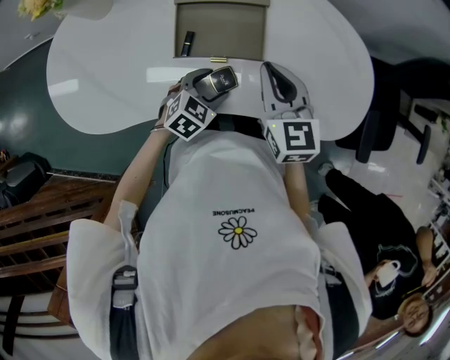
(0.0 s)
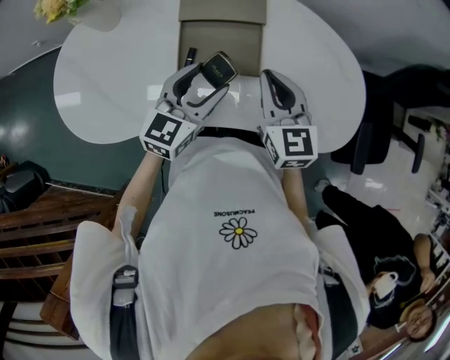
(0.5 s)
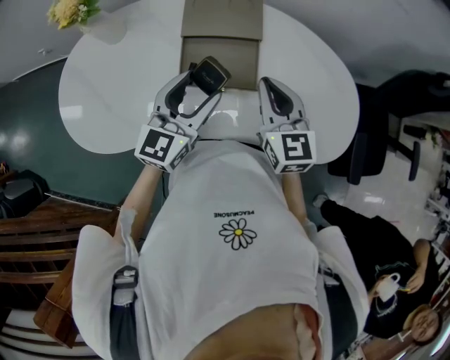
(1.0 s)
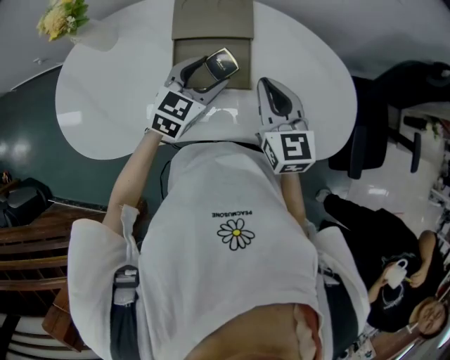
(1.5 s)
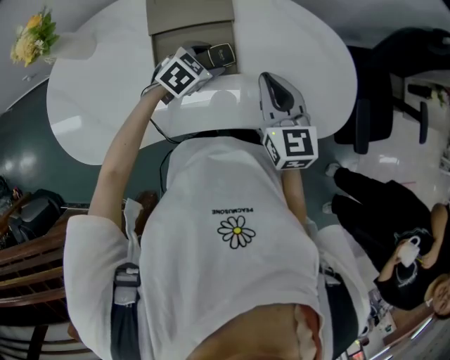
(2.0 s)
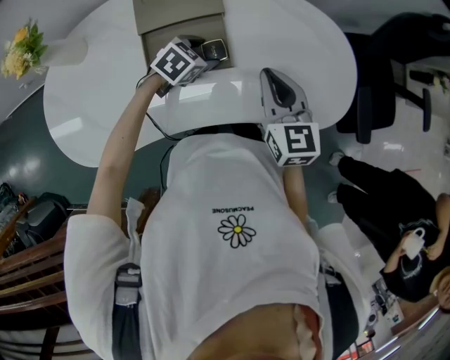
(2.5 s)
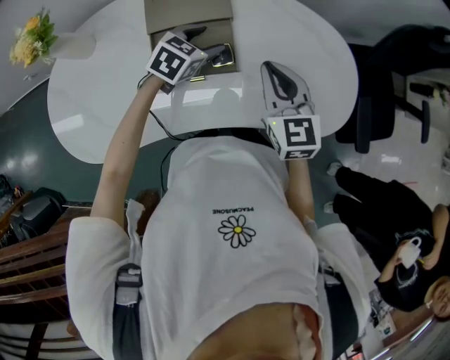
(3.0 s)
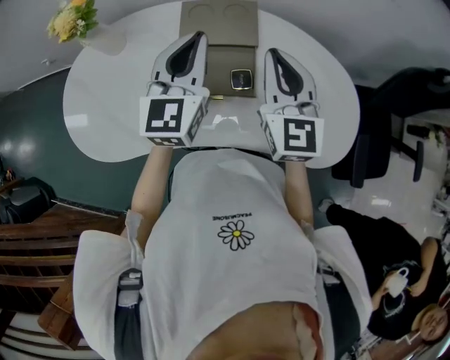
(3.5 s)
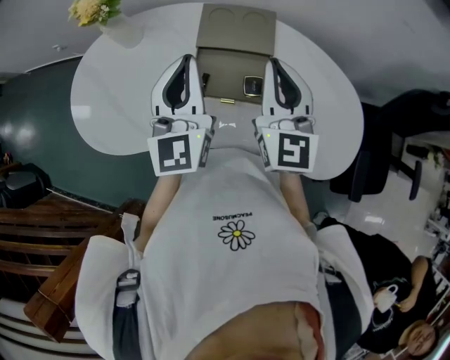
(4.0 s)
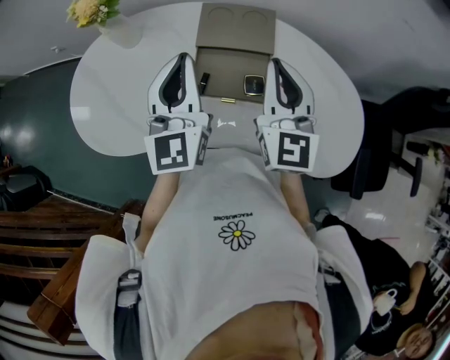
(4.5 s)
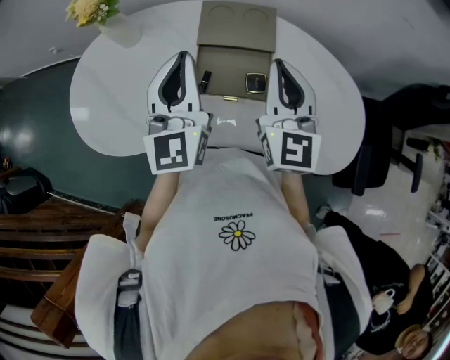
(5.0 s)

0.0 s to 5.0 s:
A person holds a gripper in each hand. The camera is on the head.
0.0 to 2.5 s: The left gripper goes upward and returns, about 20 cm each way; the right gripper ends up roughly 10 cm from where it was.
2.5 to 5.0 s: The left gripper heads upward, covering approximately 30 cm, tilts its fingers roughly 60 degrees upward, and closes its fingers; the right gripper heads upward, covering some 15 cm, and swivels about 20 degrees.

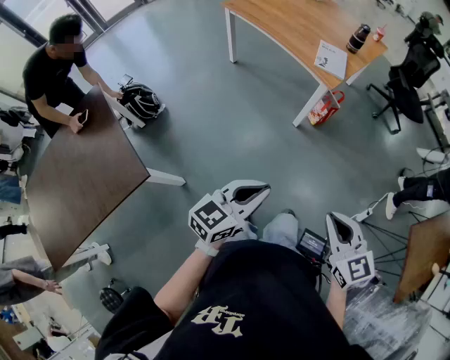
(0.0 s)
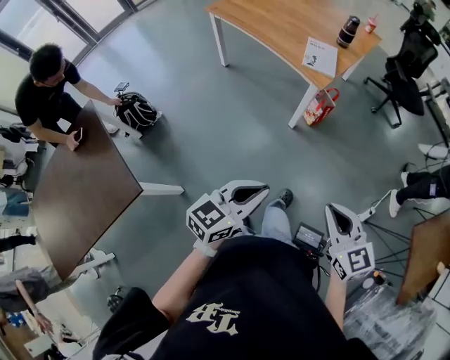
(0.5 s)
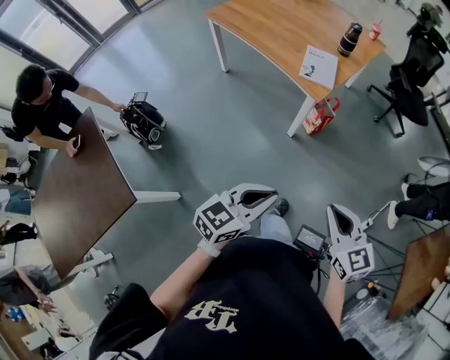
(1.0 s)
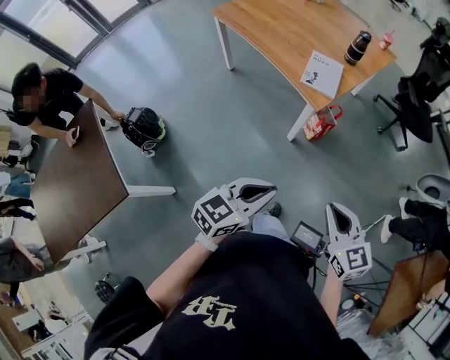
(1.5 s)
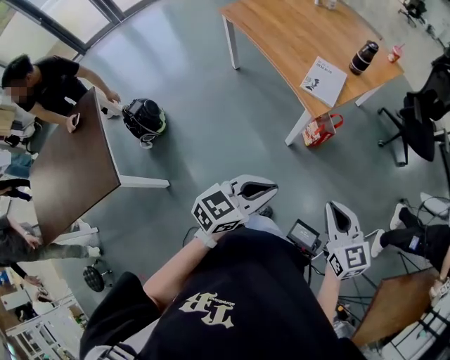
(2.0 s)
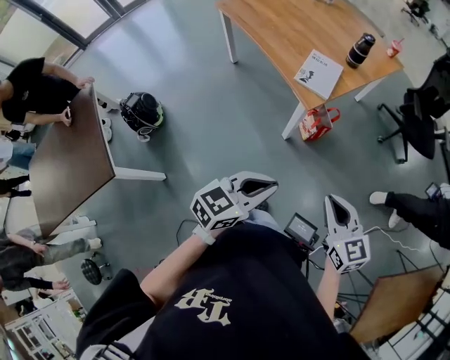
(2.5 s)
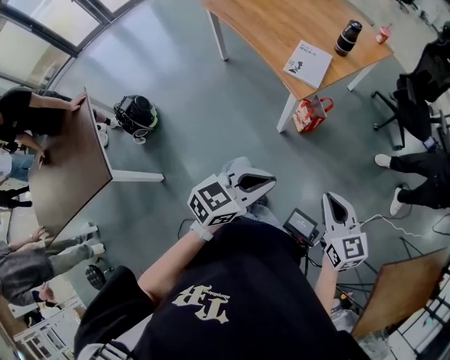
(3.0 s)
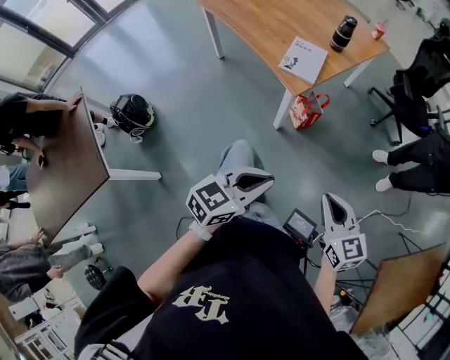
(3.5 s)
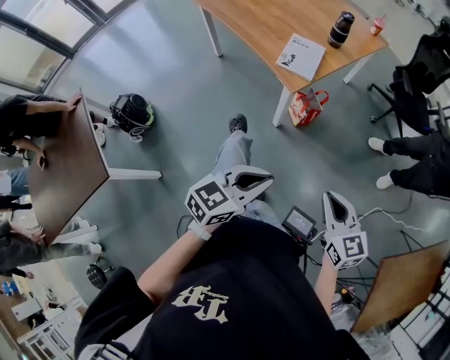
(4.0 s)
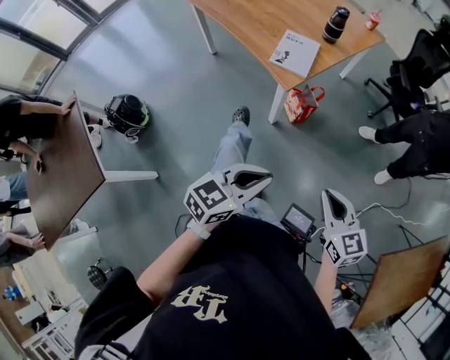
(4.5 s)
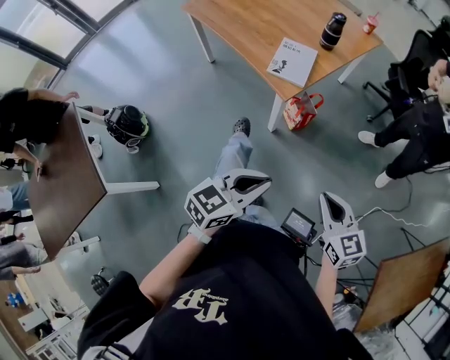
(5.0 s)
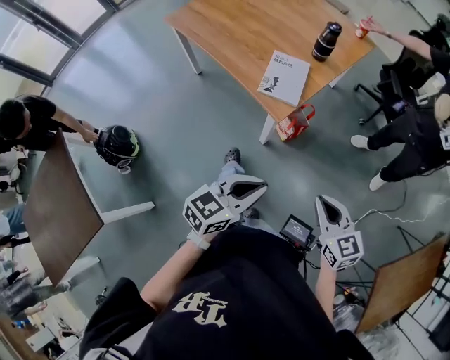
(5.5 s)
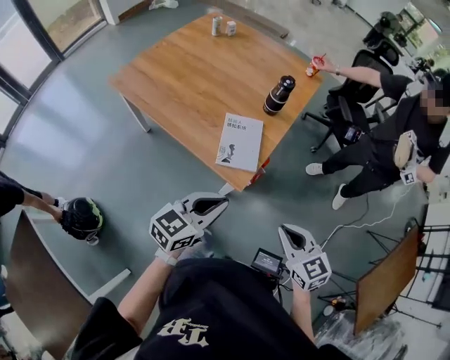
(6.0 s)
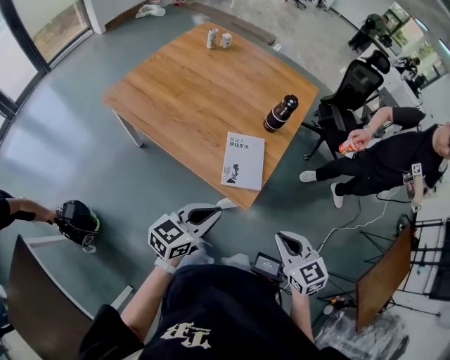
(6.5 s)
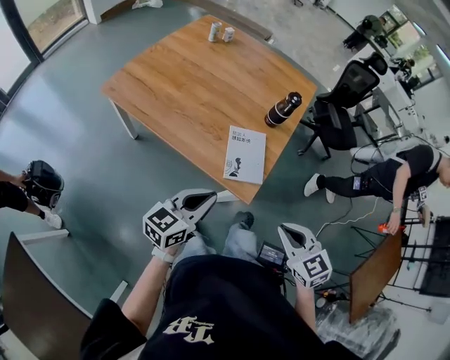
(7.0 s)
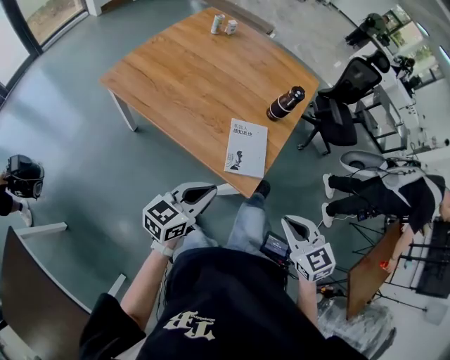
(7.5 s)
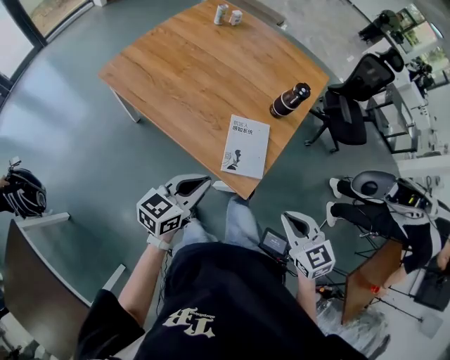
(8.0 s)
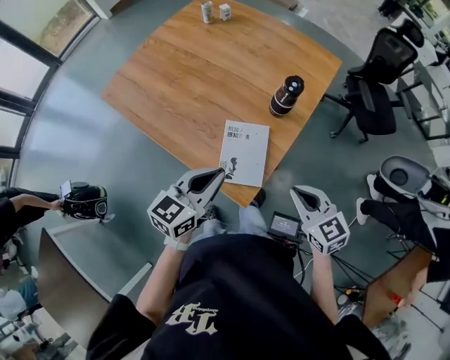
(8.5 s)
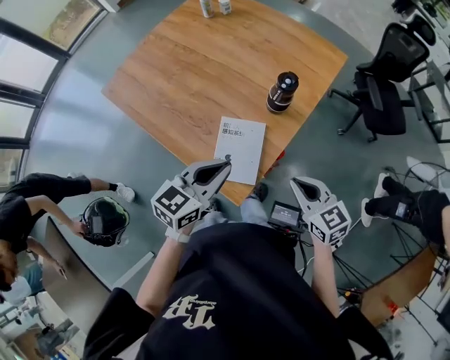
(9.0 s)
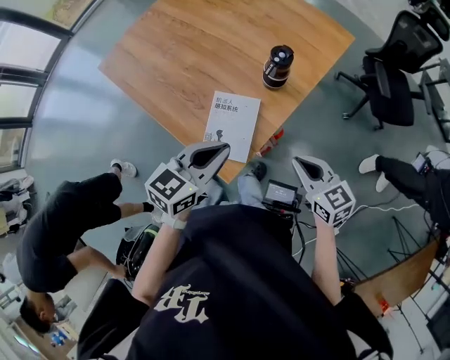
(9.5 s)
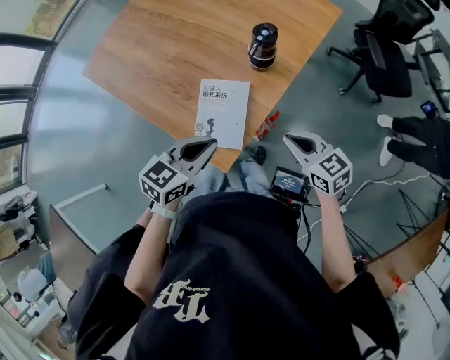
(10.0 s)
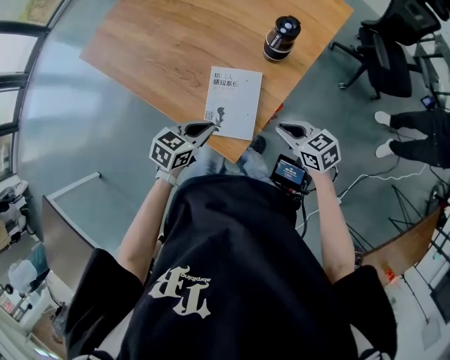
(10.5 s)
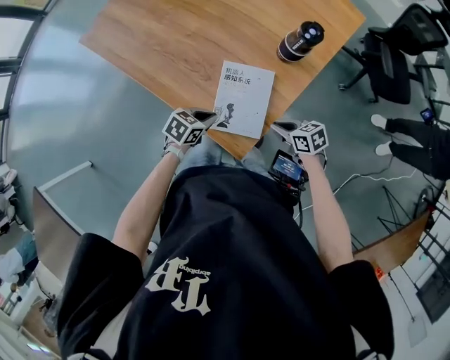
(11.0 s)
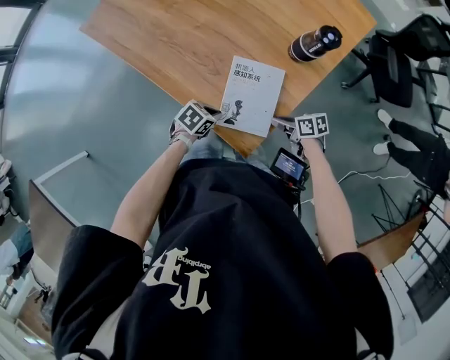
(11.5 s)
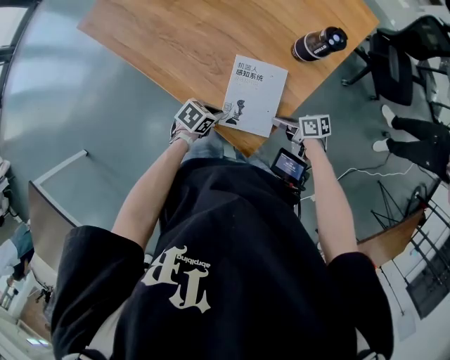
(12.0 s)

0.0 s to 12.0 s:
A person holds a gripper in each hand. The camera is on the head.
0.0 to 2.0 s: The grippers both shift forward and to the right by about 35 cm.
2.0 to 4.0 s: Both grippers move to the right, roughly 10 cm.
4.0 to 6.0 s: The grippers both shift forward and to the left by approximately 35 cm.
6.0 to 8.0 s: The right gripper is displaced forward and to the left by roughly 10 cm. The left gripper shifts some 15 cm to the left and forward.
8.0 to 10.0 s: The right gripper is displaced forward, to the right and downward by roughly 30 cm, and rotates approximately 20 degrees. The left gripper moves to the right and forward, about 25 cm.
10.0 to 12.0 s: Both grippers move downward, roughly 25 cm. The left gripper swivels approximately 30 degrees. The right gripper twists about 40 degrees clockwise, seen from behind.

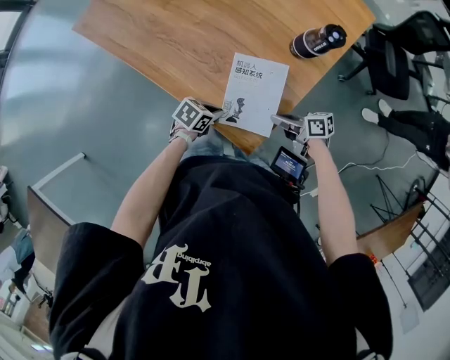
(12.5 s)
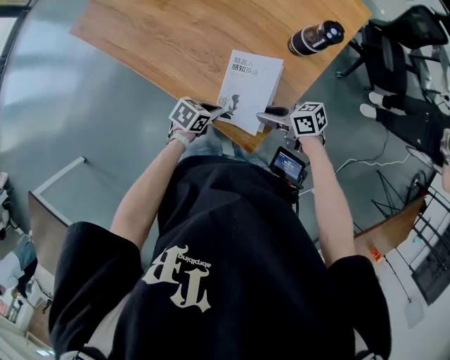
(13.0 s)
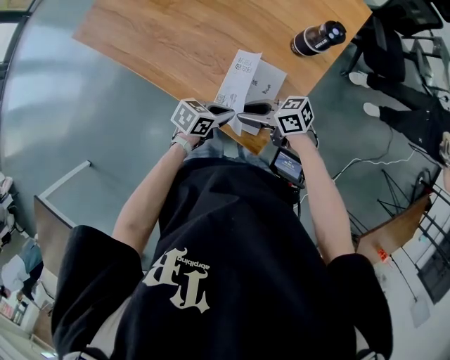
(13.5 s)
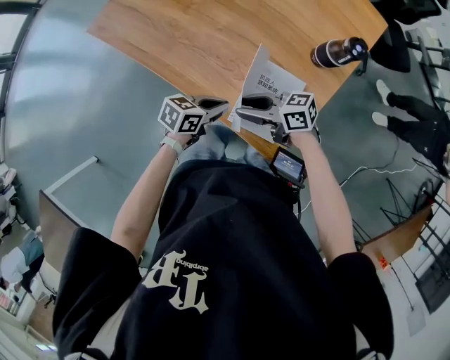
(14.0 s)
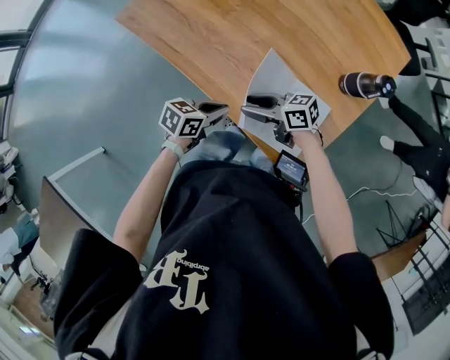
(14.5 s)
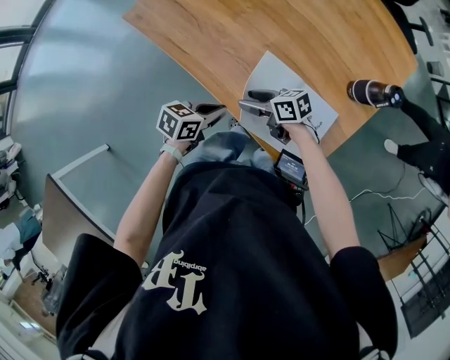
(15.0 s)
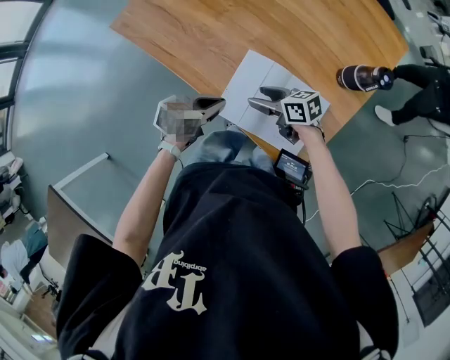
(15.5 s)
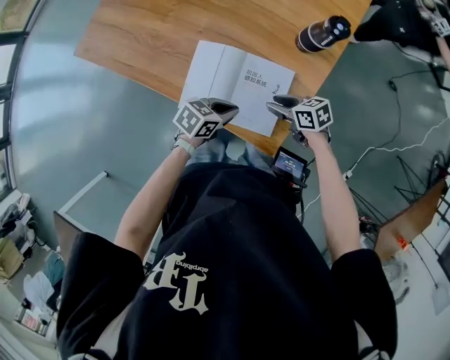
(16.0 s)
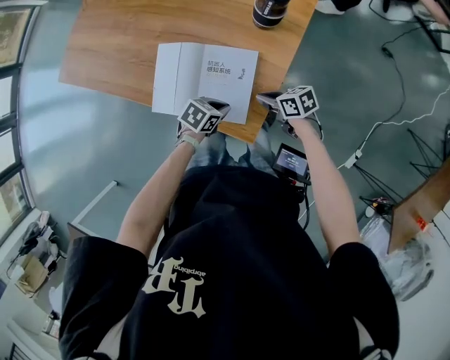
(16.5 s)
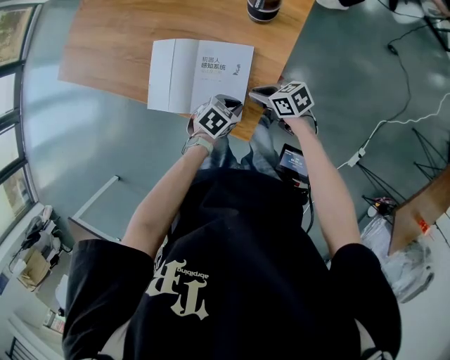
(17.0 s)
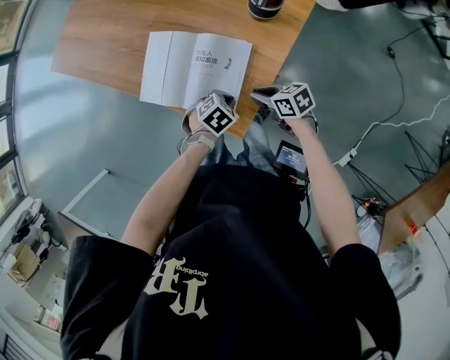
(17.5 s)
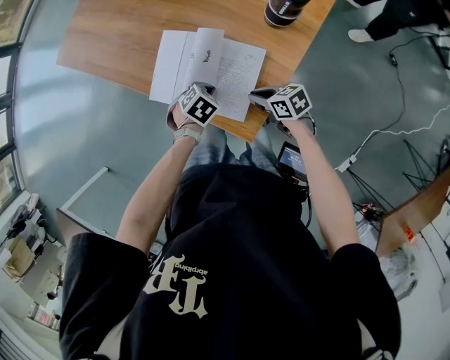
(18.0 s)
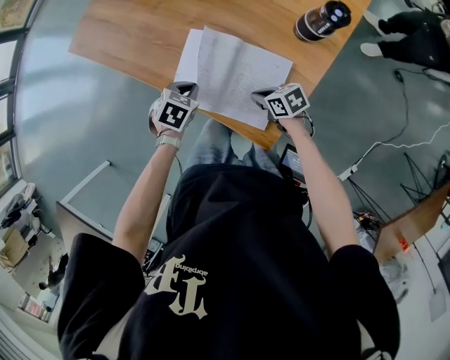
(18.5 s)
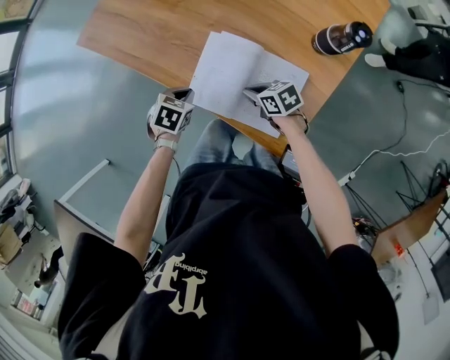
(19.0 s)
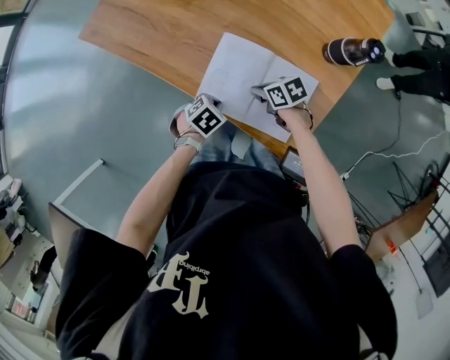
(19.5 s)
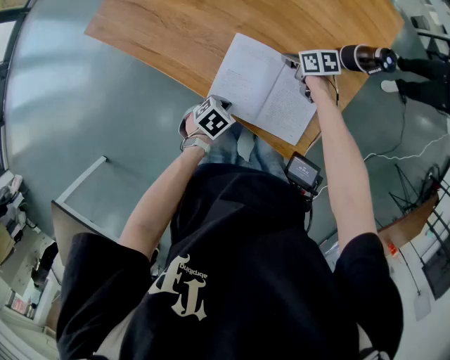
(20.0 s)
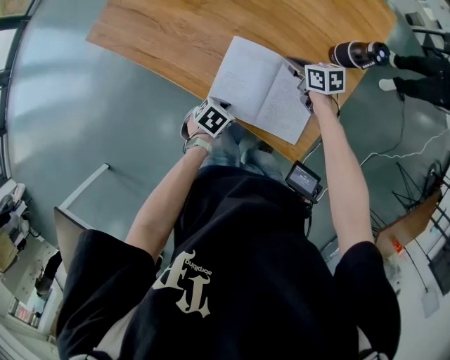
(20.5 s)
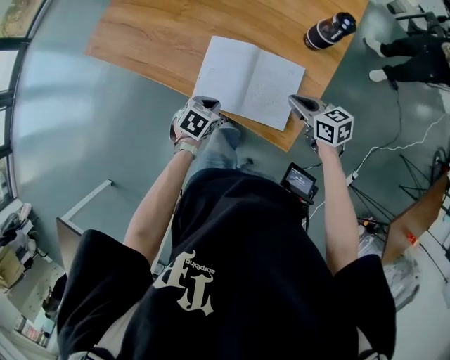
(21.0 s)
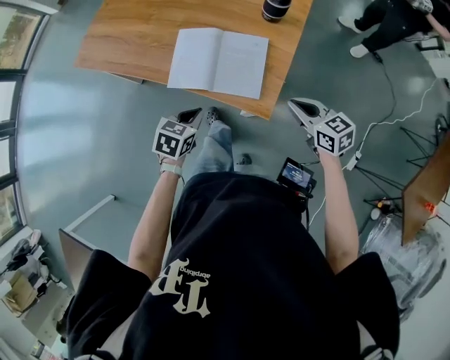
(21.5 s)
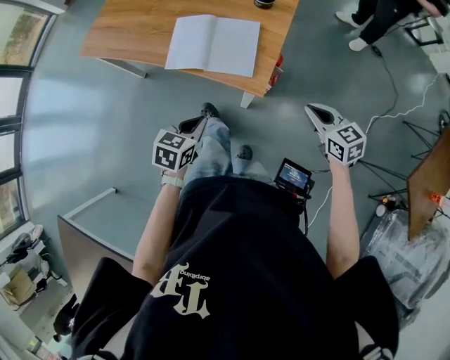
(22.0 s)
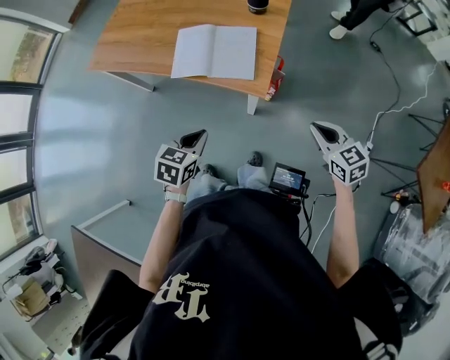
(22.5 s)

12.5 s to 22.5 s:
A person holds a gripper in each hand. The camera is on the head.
12.5 to 14.5 s: The left gripper changes place by roughly 15 cm. The right gripper ends up about 25 cm from where it was, turns by some 30 degrees, and opens up.
14.5 to 16.5 s: The left gripper shifts by roughly 20 cm, and changes its angle by roughly 30 degrees. The right gripper changes place by roughly 25 cm, turns by approximately 30 degrees, and closes its fingers.
16.5 to 18.5 s: The left gripper ends up approximately 15 cm from where it was, and swivels approximately 30 degrees. Meanwhile the right gripper ends up approximately 10 cm from where it was.
18.5 to 20.5 s: The right gripper changes place by approximately 20 cm, while the left gripper is displaced downward by some 10 cm.
20.5 to 22.5 s: The right gripper moves some 60 cm, and changes its angle by roughly 30 degrees. Meanwhile the left gripper ends up some 40 cm from where it was, and turns by approximately 20 degrees.
